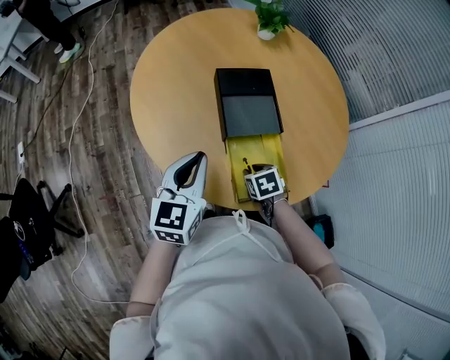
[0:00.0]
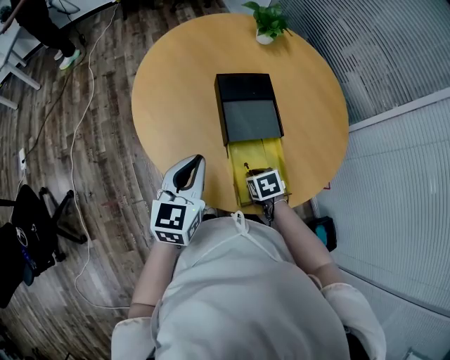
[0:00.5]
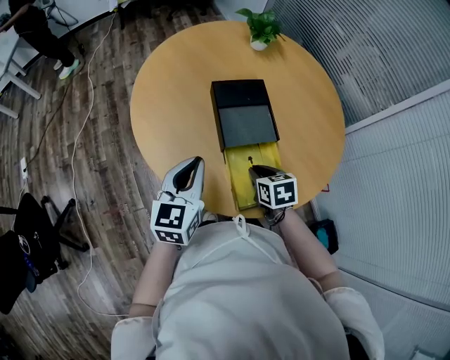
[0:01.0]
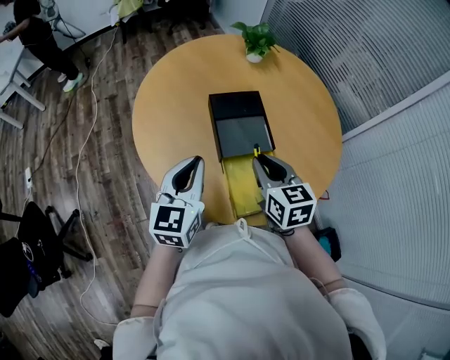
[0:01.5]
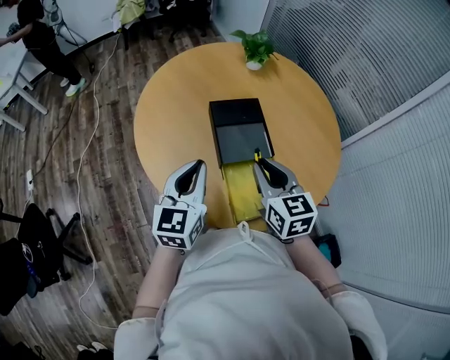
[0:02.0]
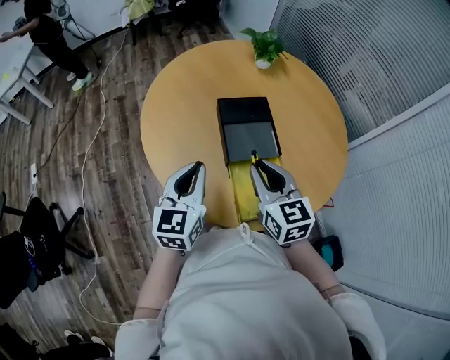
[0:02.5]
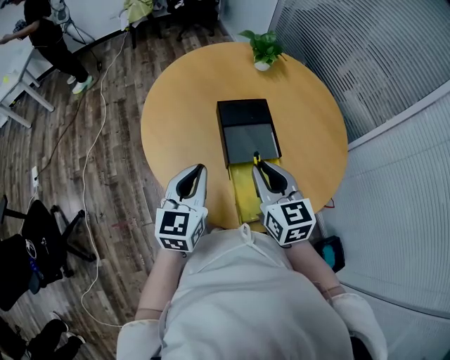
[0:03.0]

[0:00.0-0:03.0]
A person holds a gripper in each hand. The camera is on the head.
0:00.0 to 0:01.5: The left gripper shifts by some 5 cm; the right gripper heads upward, covering some 20 cm, and tips its fingers upward by approximately 40 degrees.
0:01.5 to 0:03.0: The grippers move only a little.

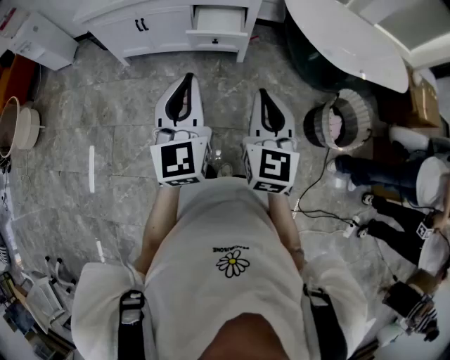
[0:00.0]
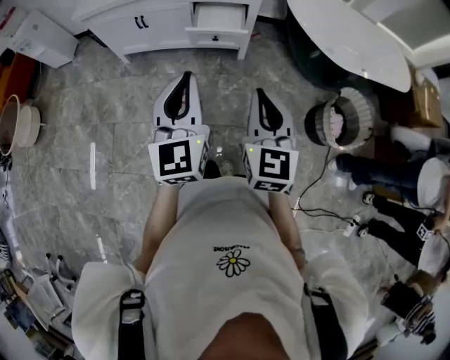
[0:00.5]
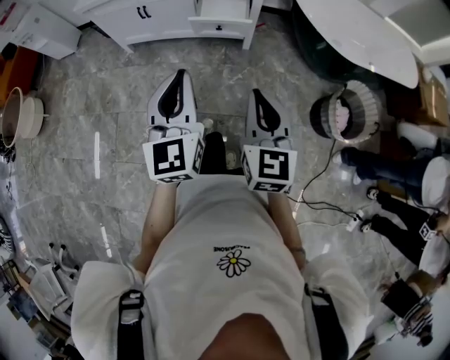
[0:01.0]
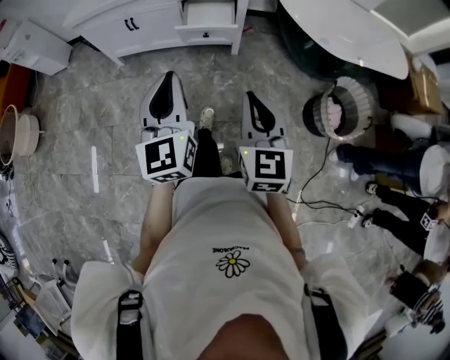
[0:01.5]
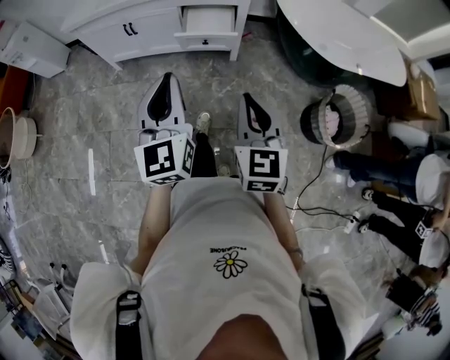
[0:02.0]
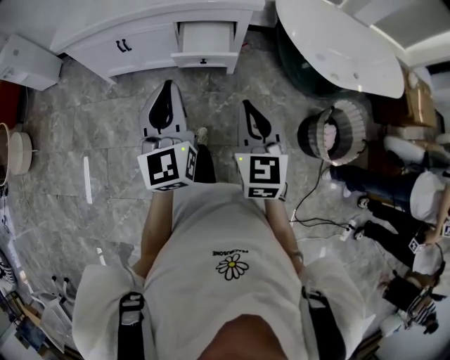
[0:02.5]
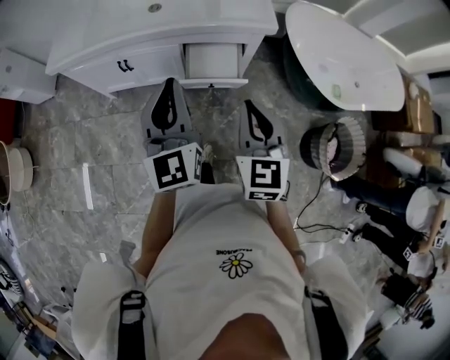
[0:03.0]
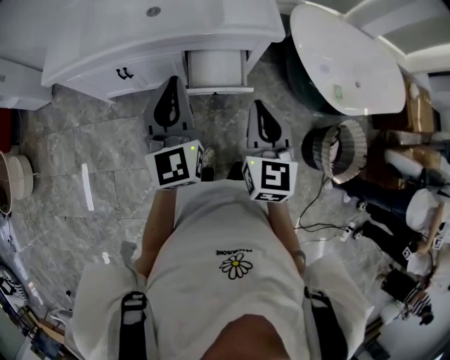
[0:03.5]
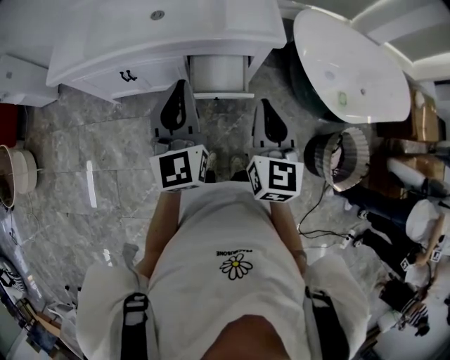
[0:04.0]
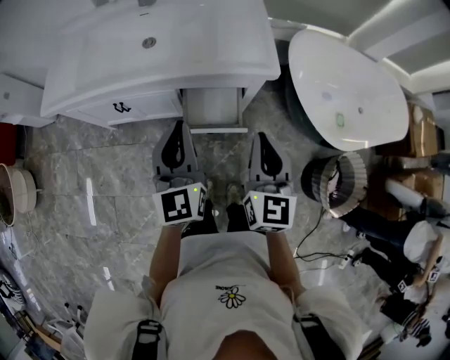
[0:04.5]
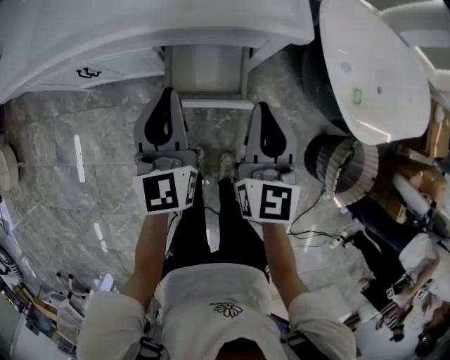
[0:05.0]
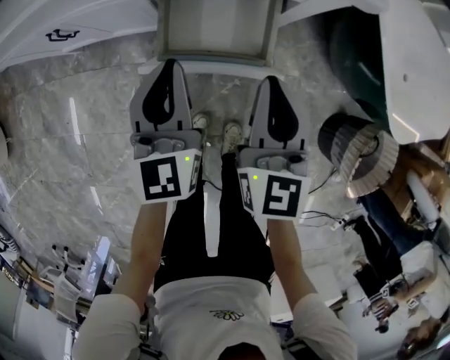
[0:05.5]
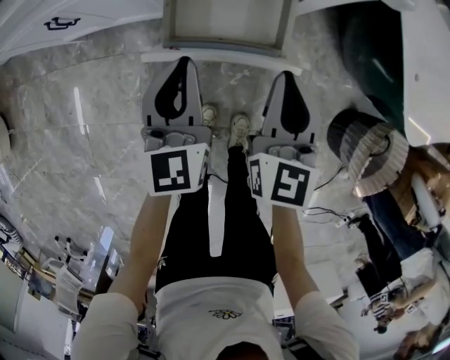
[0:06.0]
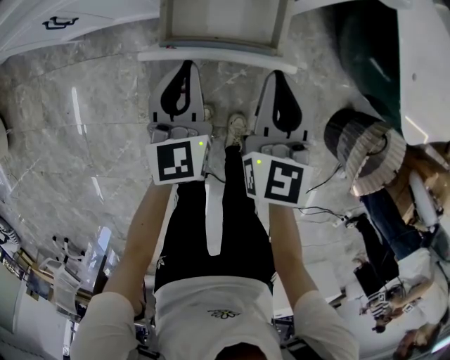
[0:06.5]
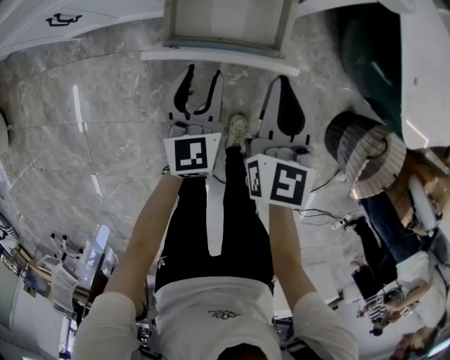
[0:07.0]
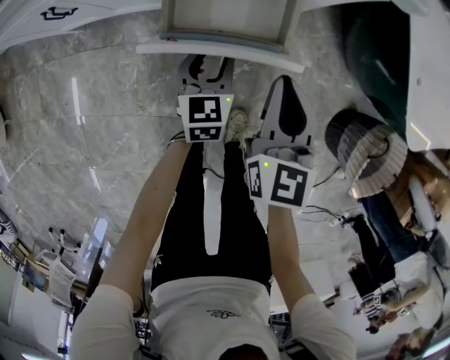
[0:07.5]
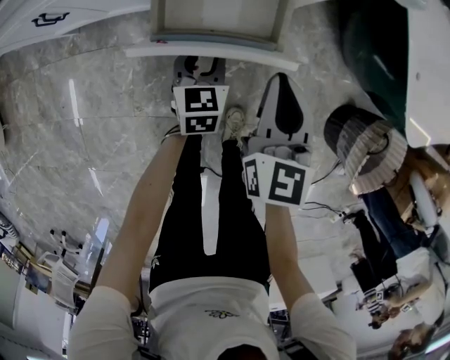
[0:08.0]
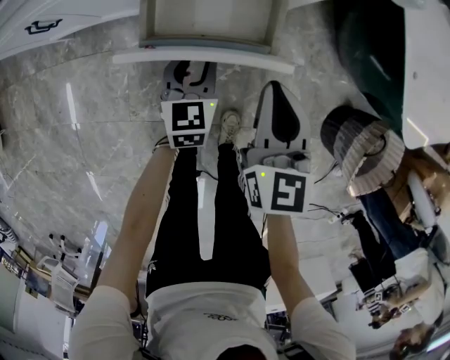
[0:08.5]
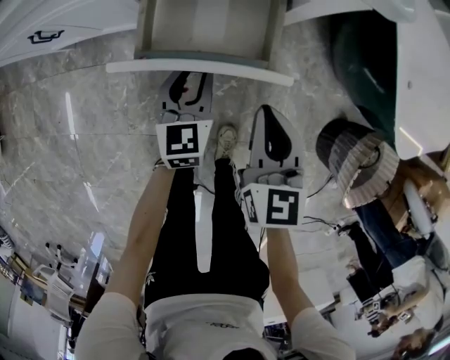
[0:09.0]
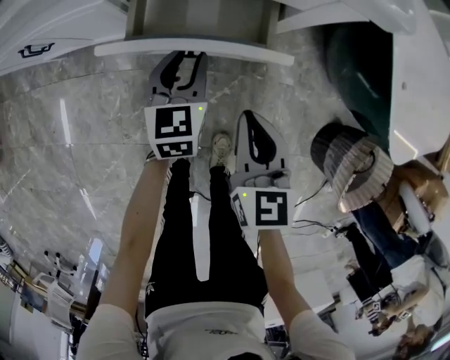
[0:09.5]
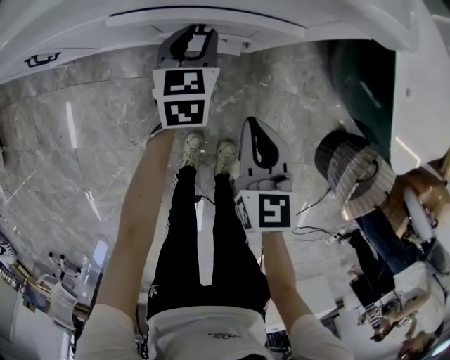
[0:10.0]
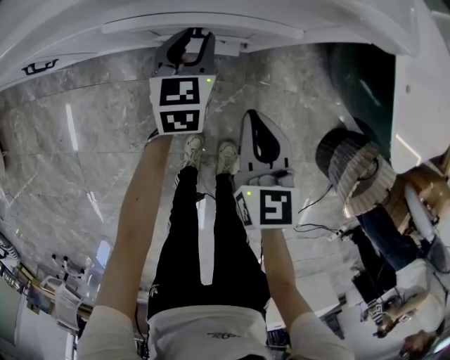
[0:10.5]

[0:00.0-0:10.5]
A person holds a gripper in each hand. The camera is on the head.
0:00.0 to 0:02.0: The grippers make only small movements.
0:02.0 to 0:04.0: Both grippers travel together forward, some 30 cm.
0:04.0 to 0:06.5: The grippers both shift downward by some 35 cm. The left gripper turns by roughly 20 degrees.
0:06.5 to 0:08.5: The left gripper travels downward by approximately 10 cm, and opens.
0:08.5 to 0:10.5: The right gripper changes place by approximately 5 cm. The left gripper heads forward, covering some 15 cm.

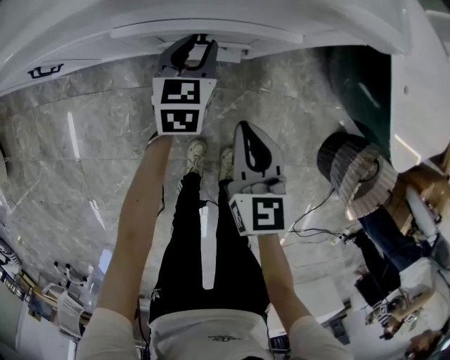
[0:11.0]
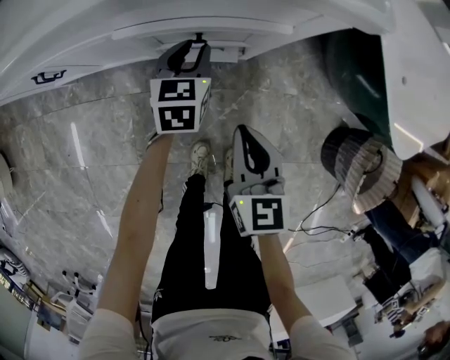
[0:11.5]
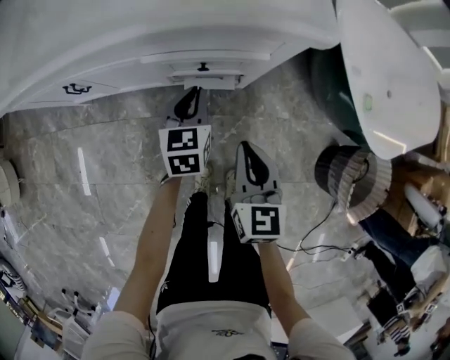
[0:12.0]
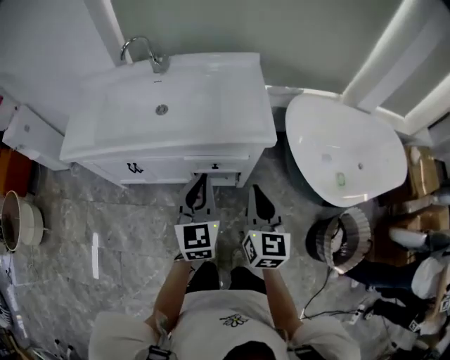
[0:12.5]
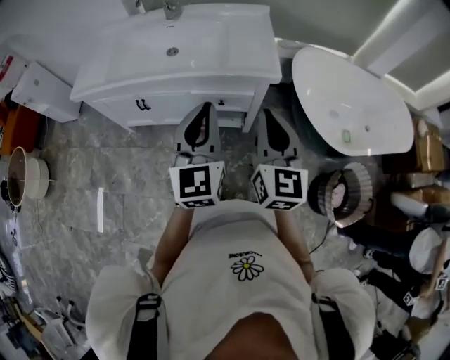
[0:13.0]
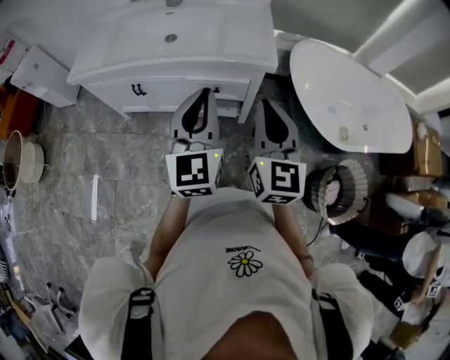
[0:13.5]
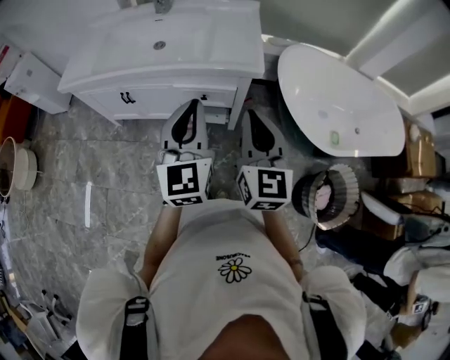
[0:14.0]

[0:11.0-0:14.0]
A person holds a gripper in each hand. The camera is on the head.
0:11.0 to 0:12.5: The right gripper heads upward, covering about 35 cm, and changes its angle by about 20 degrees. Meanwhile the left gripper moves upward and backward, some 50 cm, rotates roughly 30 degrees, and closes its fingers.
0:12.5 to 0:14.0: The right gripper goes approximately 10 cm upward and backward; the left gripper is displaced backward and upward by approximately 15 cm.

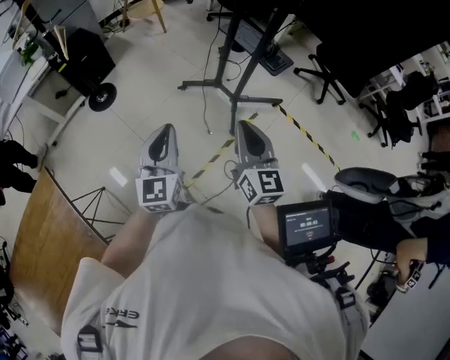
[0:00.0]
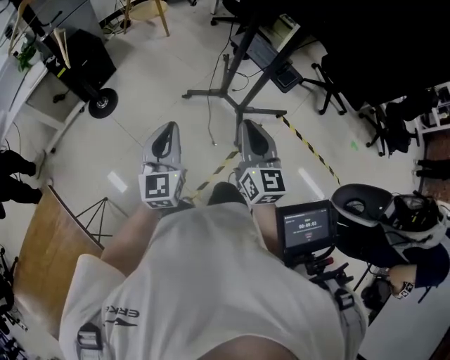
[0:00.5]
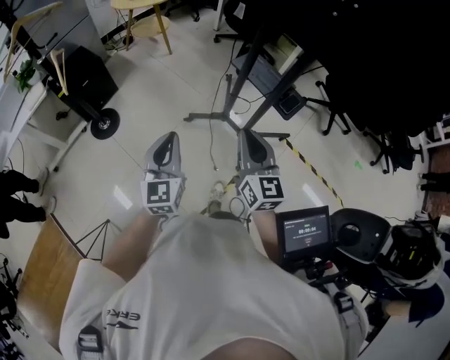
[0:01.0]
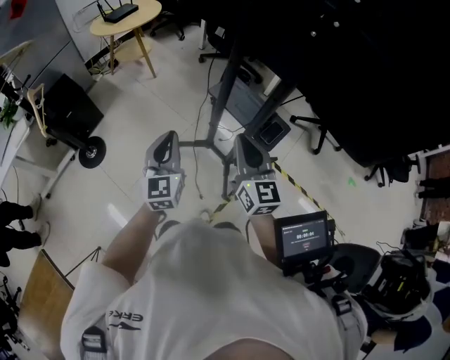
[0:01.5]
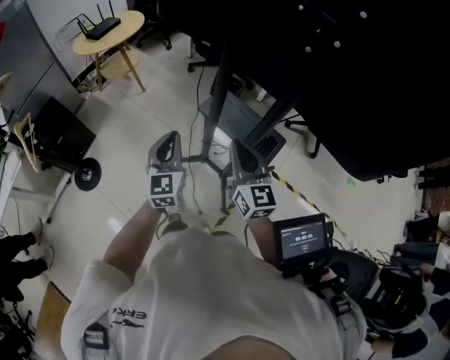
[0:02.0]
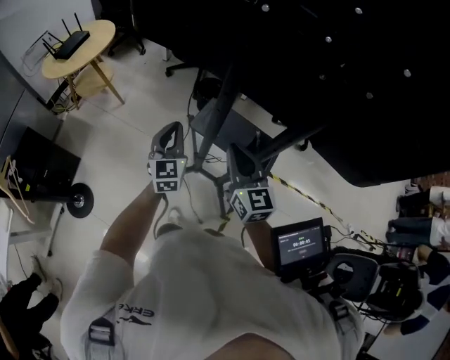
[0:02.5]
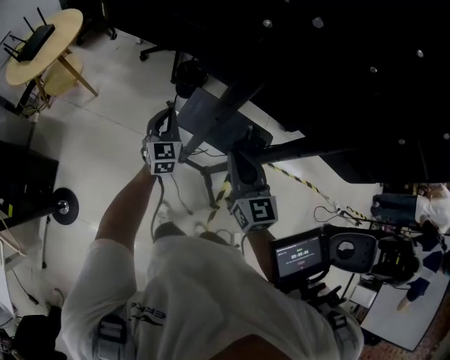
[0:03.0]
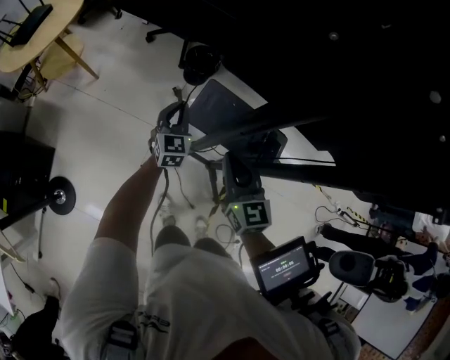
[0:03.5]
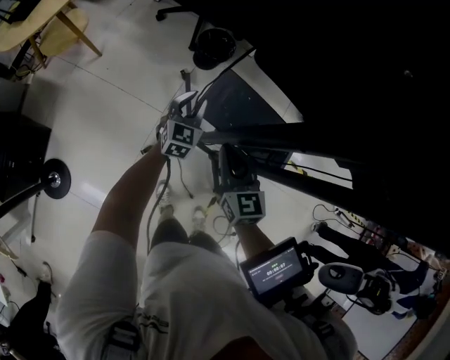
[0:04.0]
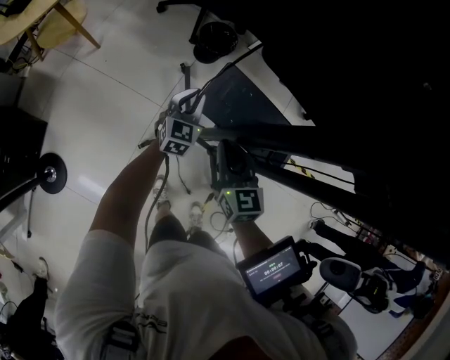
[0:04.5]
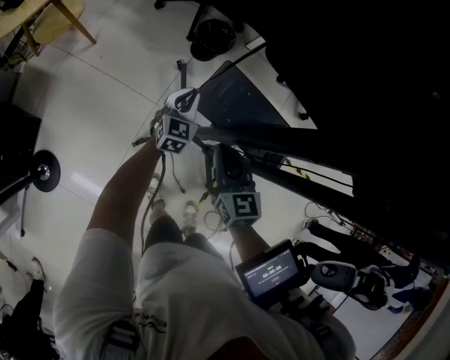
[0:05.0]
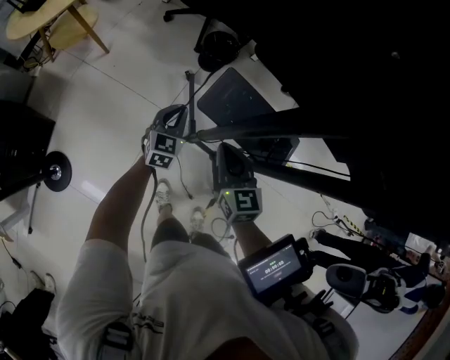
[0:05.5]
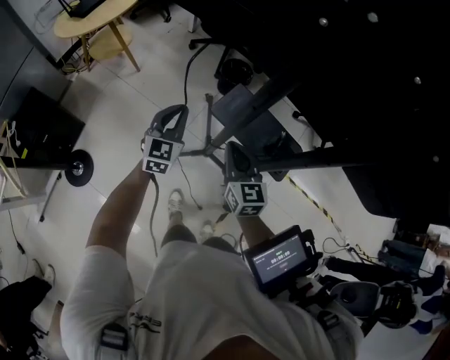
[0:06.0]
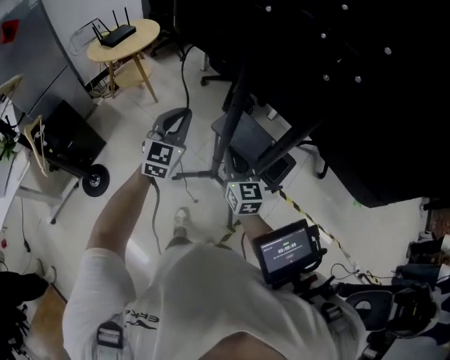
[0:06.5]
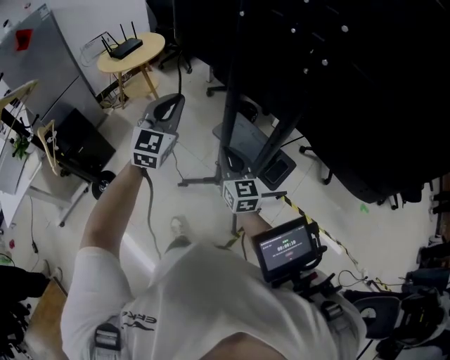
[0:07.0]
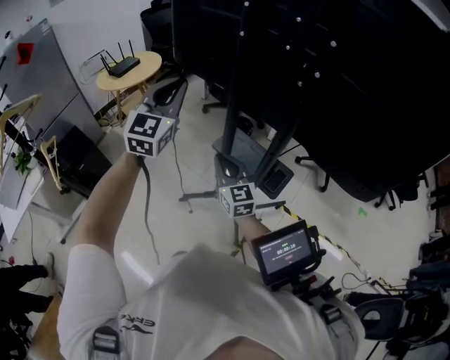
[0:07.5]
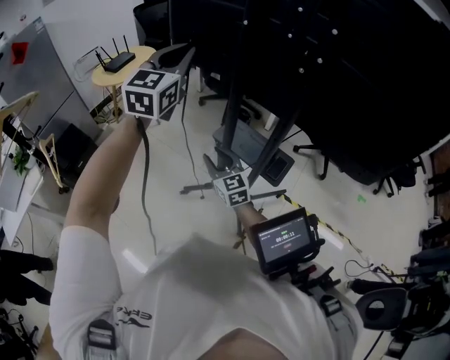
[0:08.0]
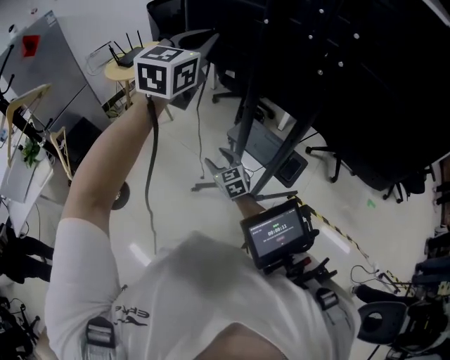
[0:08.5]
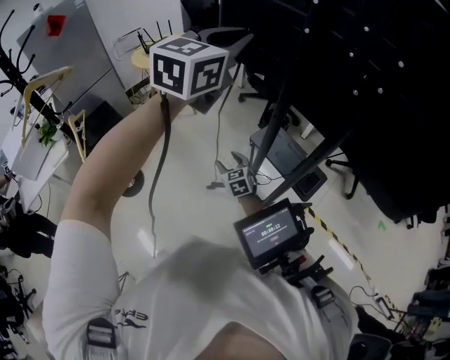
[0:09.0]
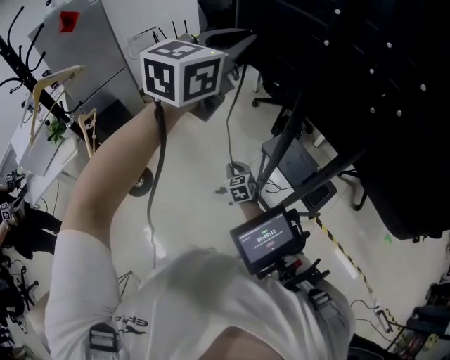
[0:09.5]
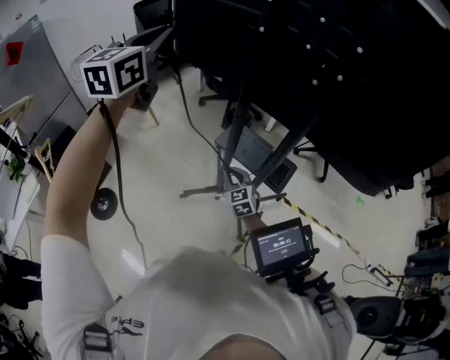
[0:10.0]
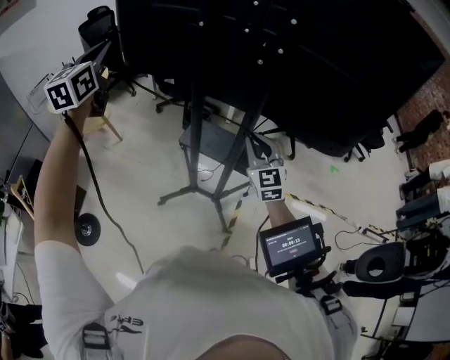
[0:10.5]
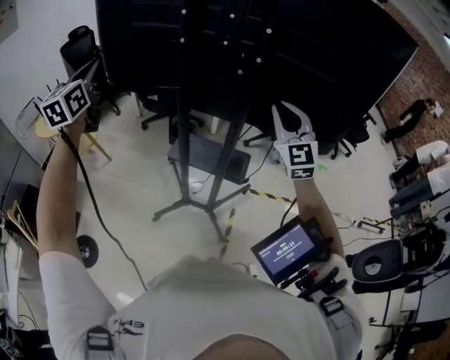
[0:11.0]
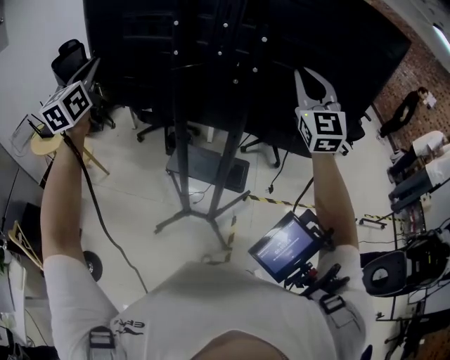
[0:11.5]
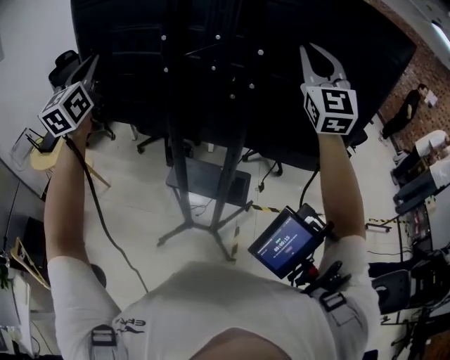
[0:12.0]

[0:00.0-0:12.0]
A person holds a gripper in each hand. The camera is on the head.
0:00.0 to 0:02.0: The pair of grippers is taken forward, roughly 50 cm.
0:02.0 to 0:04.0: The left gripper shifts some 40 cm forward and downward, and turns by some 30 degrees. The right gripper heads downward, forward and to the left, covering roughly 30 cm, and turns by roughly 30 degrees.
0:04.0 to 0:06.0: The left gripper is displaced backward, upward and to the left by roughly 25 cm, while the right gripper heads backward, covering approximately 10 cm.
0:06.0 to 0:08.0: The left gripper shifts approximately 40 cm upward; the right gripper shifts about 10 cm upward and backward, and opens its fingers.
0:08.0 to 0:10.0: The right gripper is displaced downward by roughly 10 cm, and closes its fingers; the left gripper moves to the left, about 10 cm.
0:10.0 to 0:12.0: The right gripper shifts some 60 cm upward and to the right, and angles its fingers upward, by roughly 50 degrees; the left gripper heads forward and upward, covering some 15 cm.
